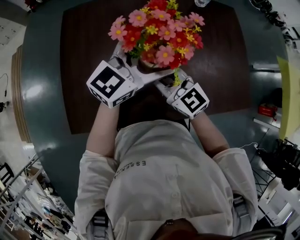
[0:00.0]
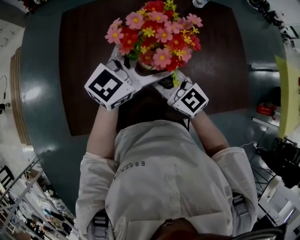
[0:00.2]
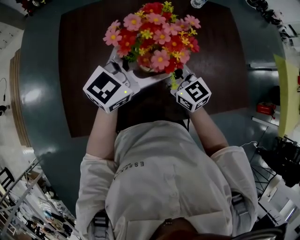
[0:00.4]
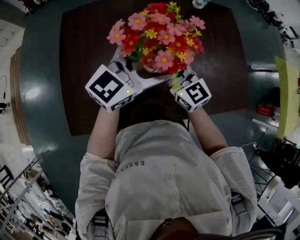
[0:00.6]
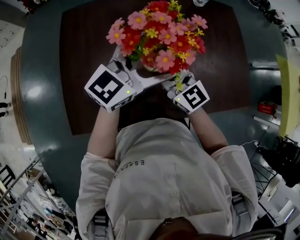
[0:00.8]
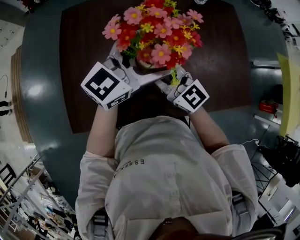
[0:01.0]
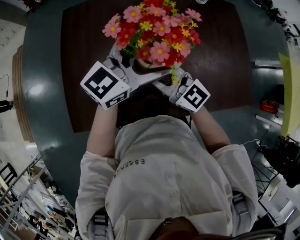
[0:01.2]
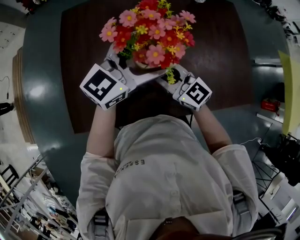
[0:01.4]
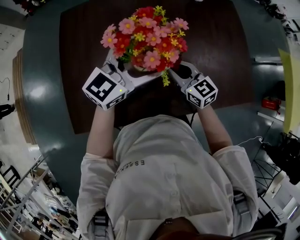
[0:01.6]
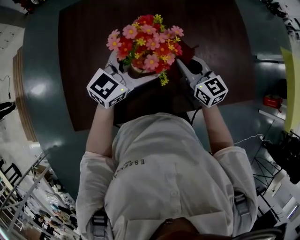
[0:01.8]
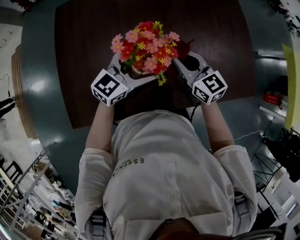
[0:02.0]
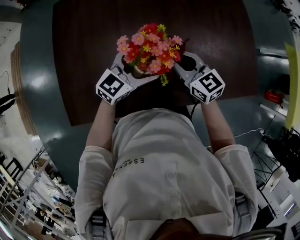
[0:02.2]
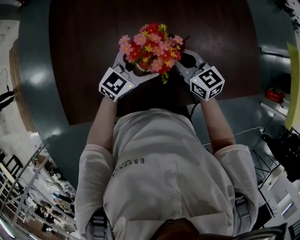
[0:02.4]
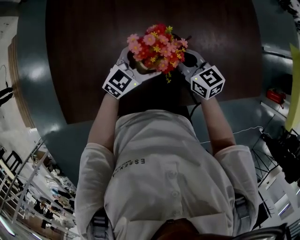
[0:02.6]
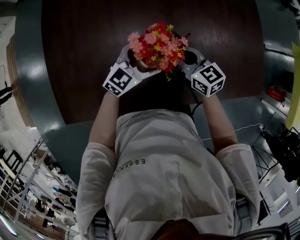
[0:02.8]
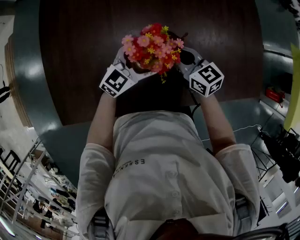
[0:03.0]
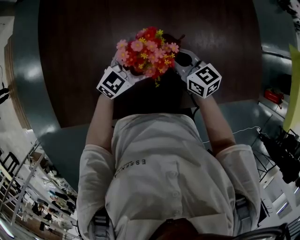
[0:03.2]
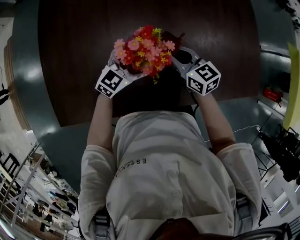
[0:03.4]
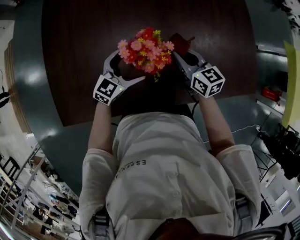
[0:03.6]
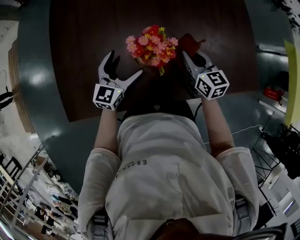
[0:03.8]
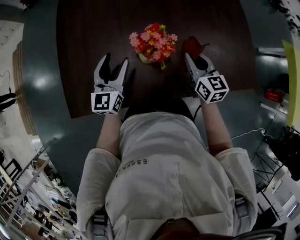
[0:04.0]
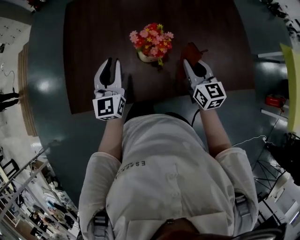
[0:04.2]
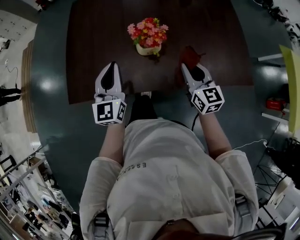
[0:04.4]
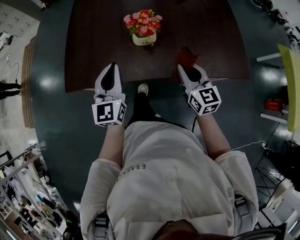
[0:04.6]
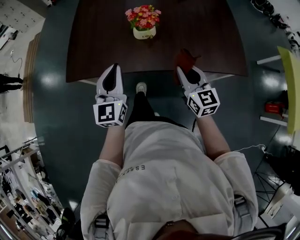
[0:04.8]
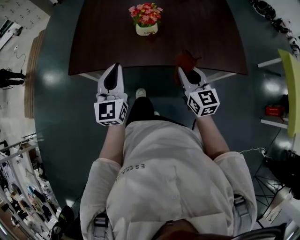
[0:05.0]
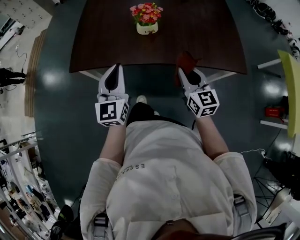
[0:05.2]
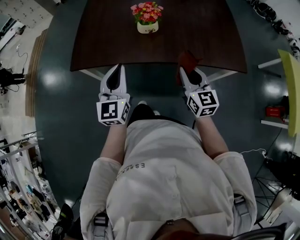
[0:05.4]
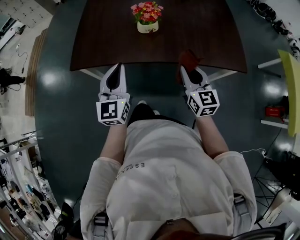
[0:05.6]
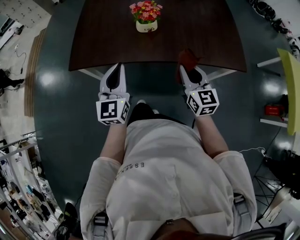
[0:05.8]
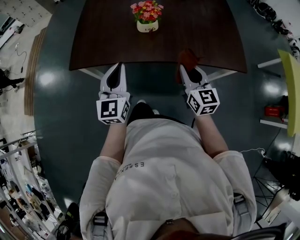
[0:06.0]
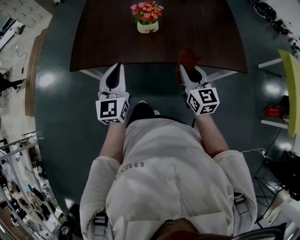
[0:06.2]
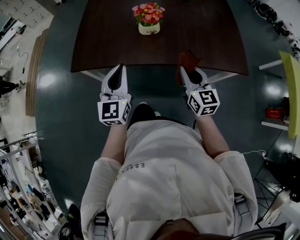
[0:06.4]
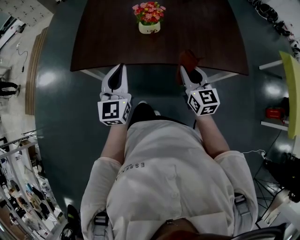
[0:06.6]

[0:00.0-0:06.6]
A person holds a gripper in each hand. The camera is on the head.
0.0 to 1.6 s: The right gripper goes left and right, roughly 10 cm each way, reversing 2 times.
1.6 to 3.2 s: The left gripper heads downward, covering approximately 25 cm. Meanwhile the right gripper moves downward, roughly 10 cm.
3.2 to 5.0 s: The two grippers go some 35 cm backward and upward. The left gripper rotates approximately 60 degrees, and closes up. Meanwhile the right gripper changes its angle by roughly 20 degrees.
5.0 to 6.6 s: There are only small adjustments of the grippers.

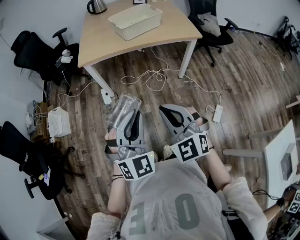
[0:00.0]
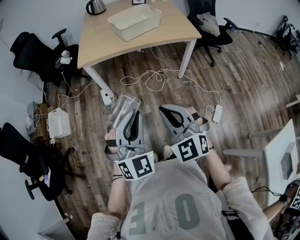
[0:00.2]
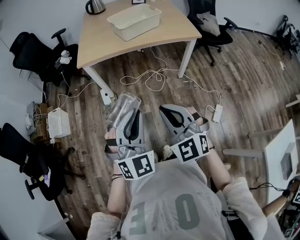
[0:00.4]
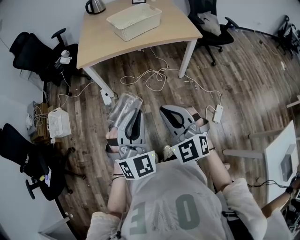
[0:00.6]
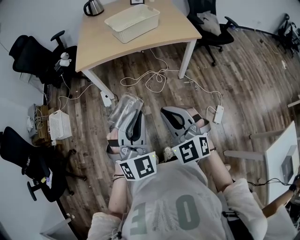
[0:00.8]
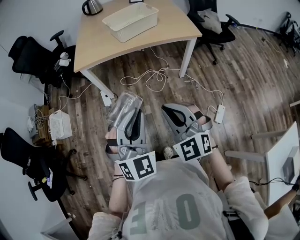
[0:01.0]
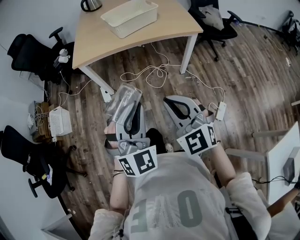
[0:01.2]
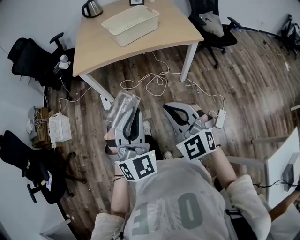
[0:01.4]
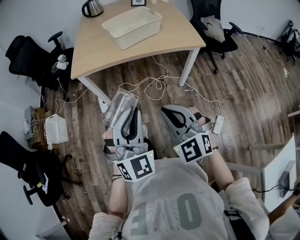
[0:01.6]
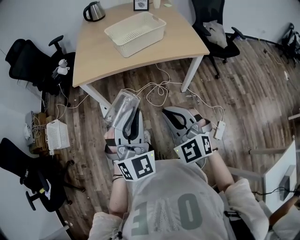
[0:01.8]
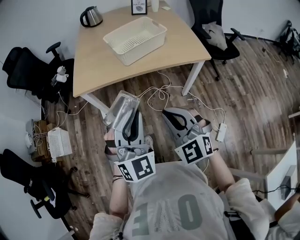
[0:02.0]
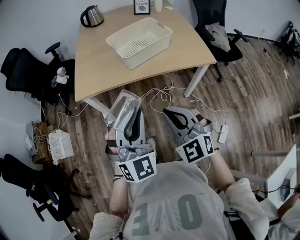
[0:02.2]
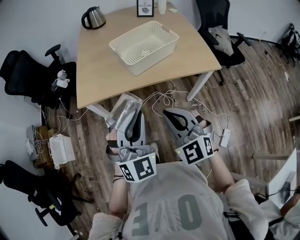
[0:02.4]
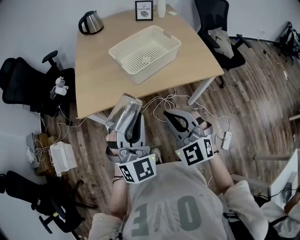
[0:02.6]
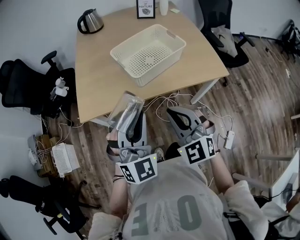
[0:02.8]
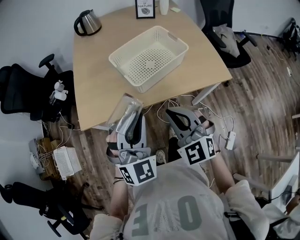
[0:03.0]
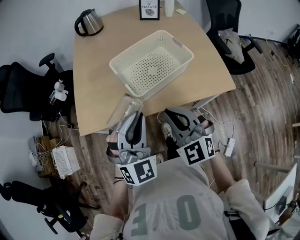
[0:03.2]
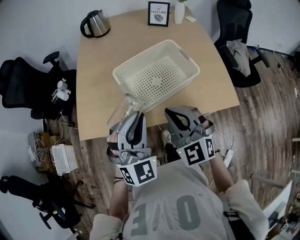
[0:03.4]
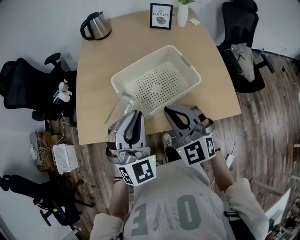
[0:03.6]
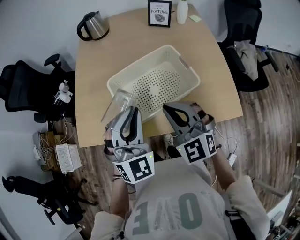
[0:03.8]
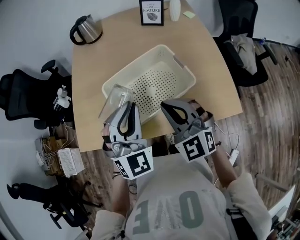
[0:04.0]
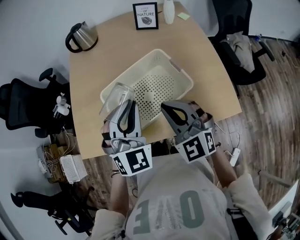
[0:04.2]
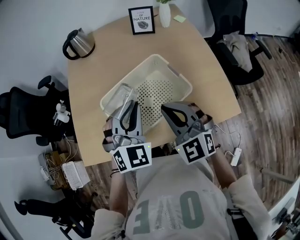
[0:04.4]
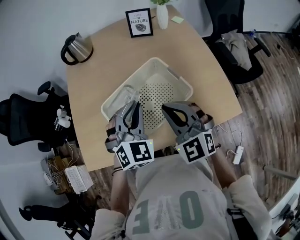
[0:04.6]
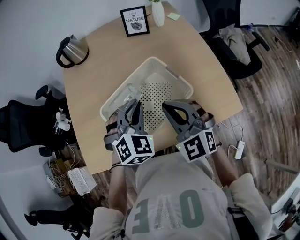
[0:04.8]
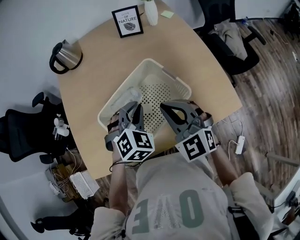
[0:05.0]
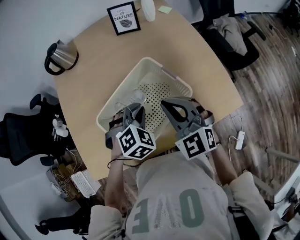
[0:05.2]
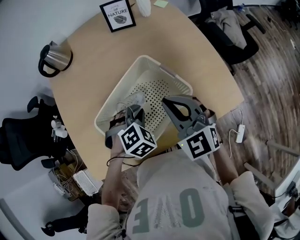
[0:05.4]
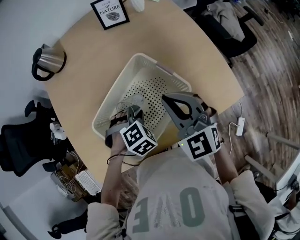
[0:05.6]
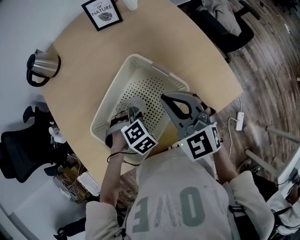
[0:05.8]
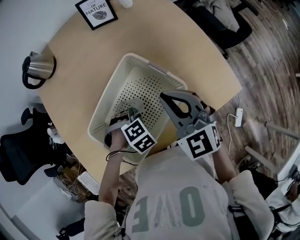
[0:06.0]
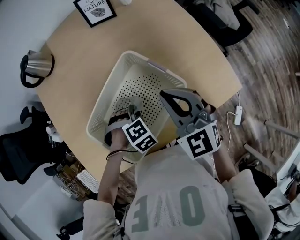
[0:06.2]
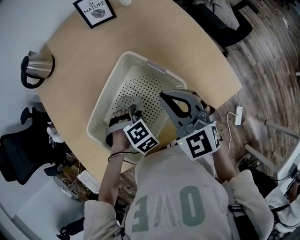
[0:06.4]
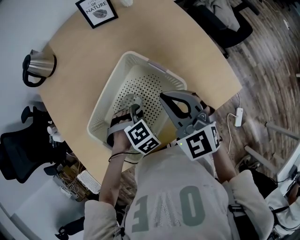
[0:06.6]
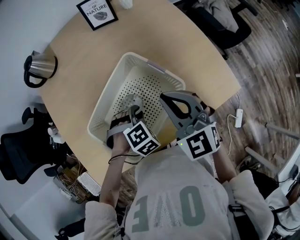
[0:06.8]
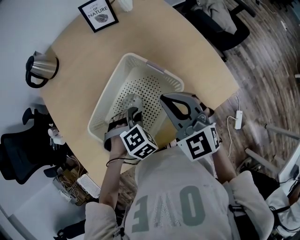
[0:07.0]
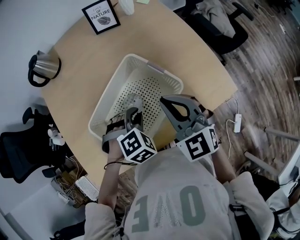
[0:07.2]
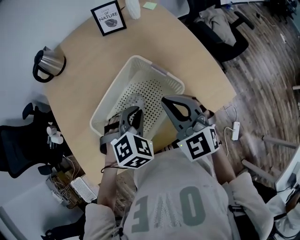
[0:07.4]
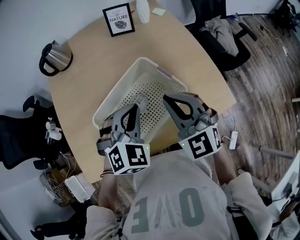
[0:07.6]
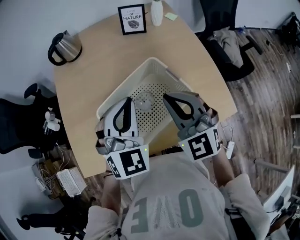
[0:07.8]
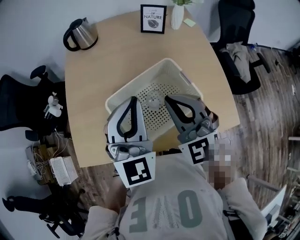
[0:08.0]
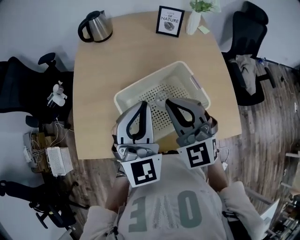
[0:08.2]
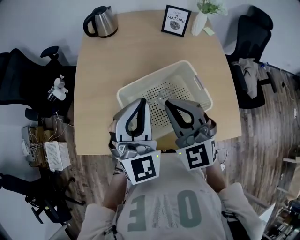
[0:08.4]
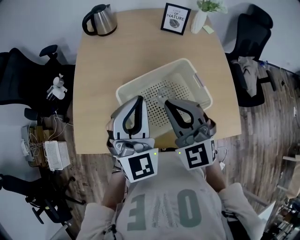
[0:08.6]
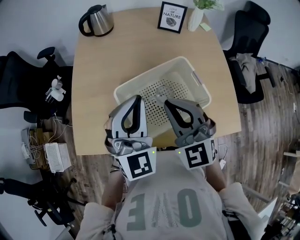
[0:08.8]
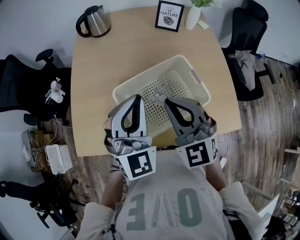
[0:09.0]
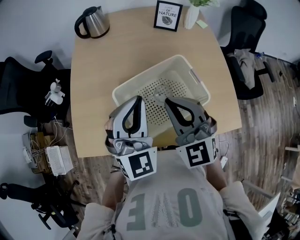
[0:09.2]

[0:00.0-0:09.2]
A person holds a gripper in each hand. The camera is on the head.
0.0 to 1.6 s: Both grippers move forward and to the right, about 15 cm.
1.6 to 3.0 s: Both grippers move forward, about 35 cm.
3.0 to 4.6 s: The two grippers go approximately 30 cm forward and to the right.
4.6 to 6.2 s: The left gripper travels downward by approximately 20 cm, and tips its fingers downward by some 50 degrees. The right gripper moves some 10 cm, and rotates approximately 20 degrees.
6.2 to 7.6 s: The right gripper goes roughly 5 cm upward. The left gripper moves upward, about 20 cm, and angles its fingers upward, by approximately 40 degrees.
7.6 to 9.2 s: The right gripper goes approximately 10 cm to the left, while the left gripper shifts roughly 15 cm to the left and upward, and angles its fingers upward, by roughly 30 degrees.

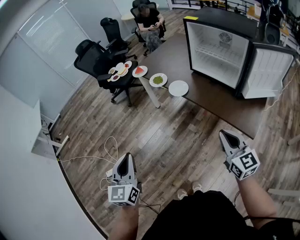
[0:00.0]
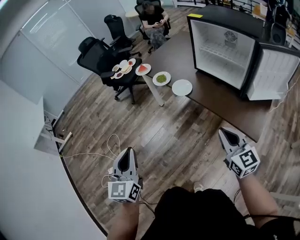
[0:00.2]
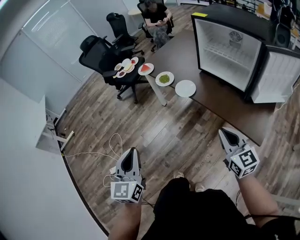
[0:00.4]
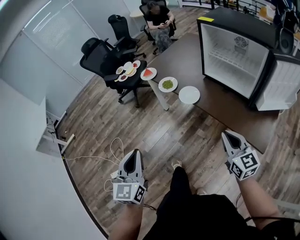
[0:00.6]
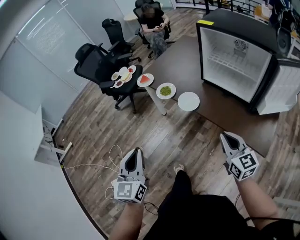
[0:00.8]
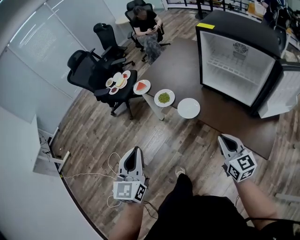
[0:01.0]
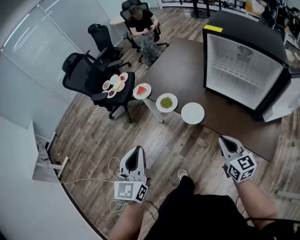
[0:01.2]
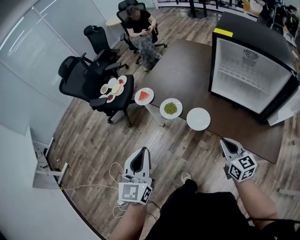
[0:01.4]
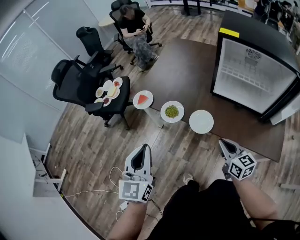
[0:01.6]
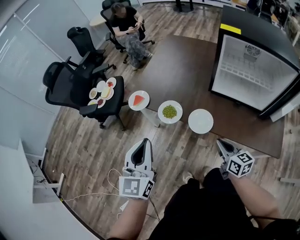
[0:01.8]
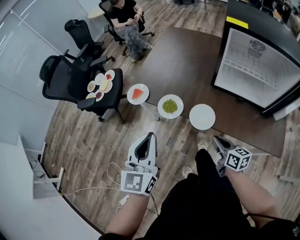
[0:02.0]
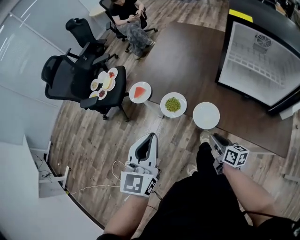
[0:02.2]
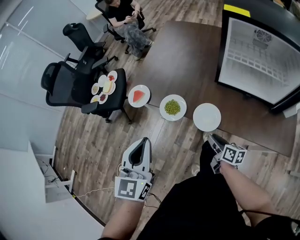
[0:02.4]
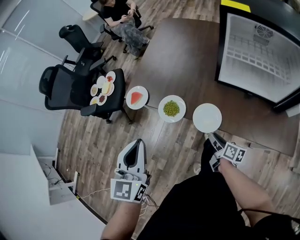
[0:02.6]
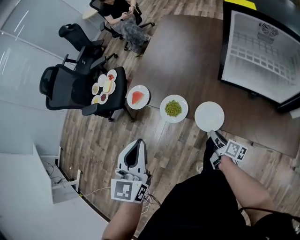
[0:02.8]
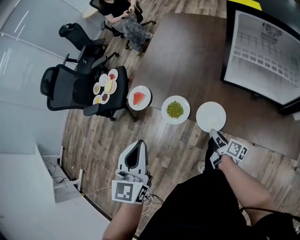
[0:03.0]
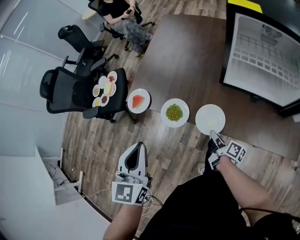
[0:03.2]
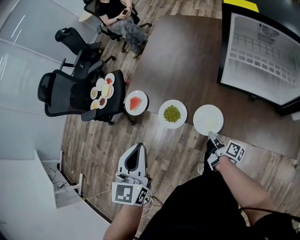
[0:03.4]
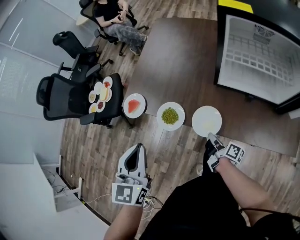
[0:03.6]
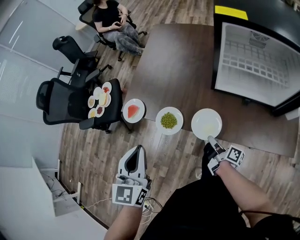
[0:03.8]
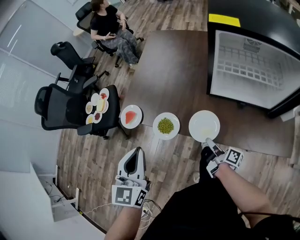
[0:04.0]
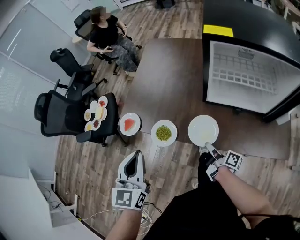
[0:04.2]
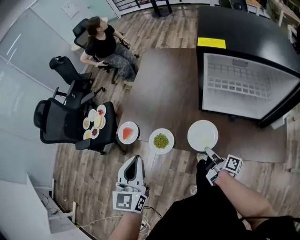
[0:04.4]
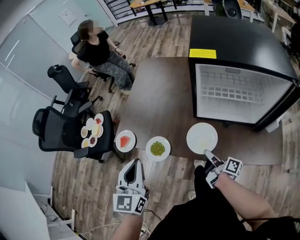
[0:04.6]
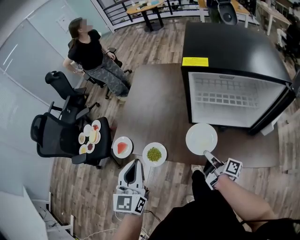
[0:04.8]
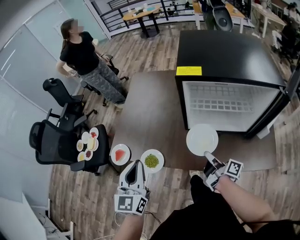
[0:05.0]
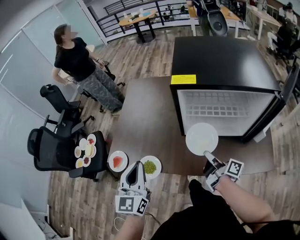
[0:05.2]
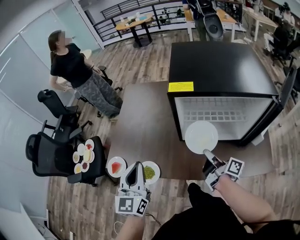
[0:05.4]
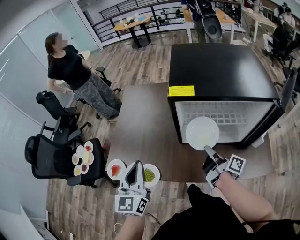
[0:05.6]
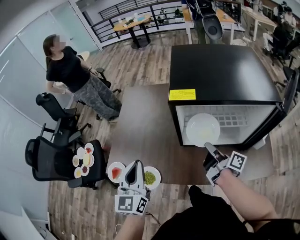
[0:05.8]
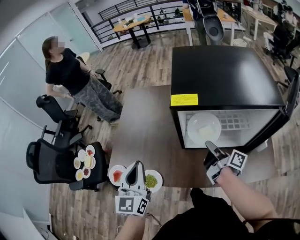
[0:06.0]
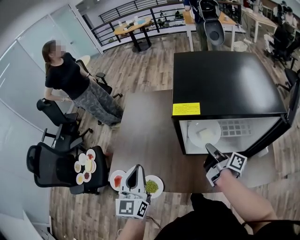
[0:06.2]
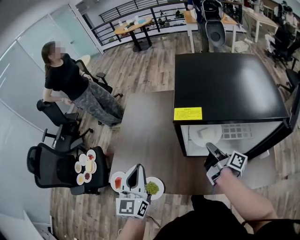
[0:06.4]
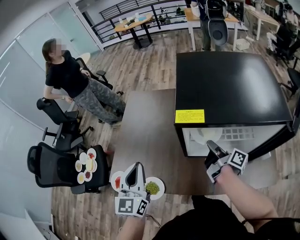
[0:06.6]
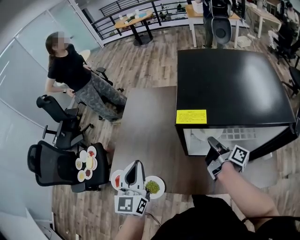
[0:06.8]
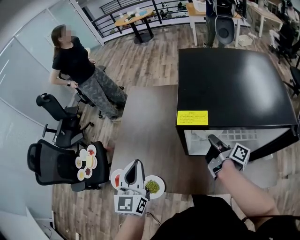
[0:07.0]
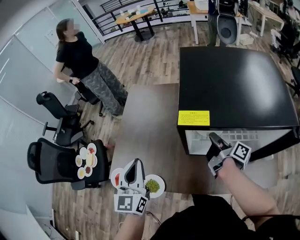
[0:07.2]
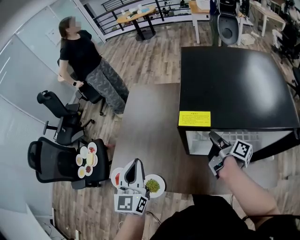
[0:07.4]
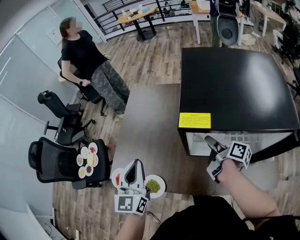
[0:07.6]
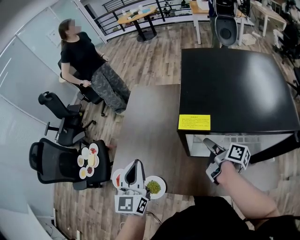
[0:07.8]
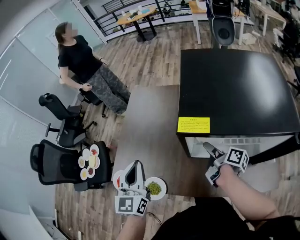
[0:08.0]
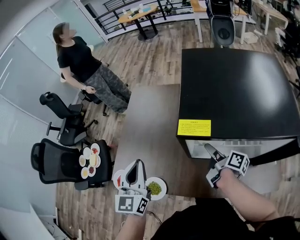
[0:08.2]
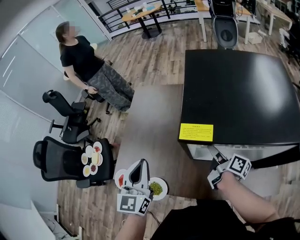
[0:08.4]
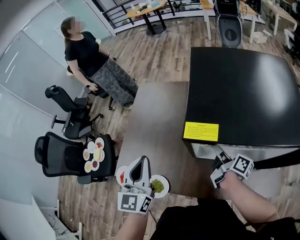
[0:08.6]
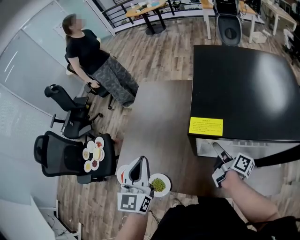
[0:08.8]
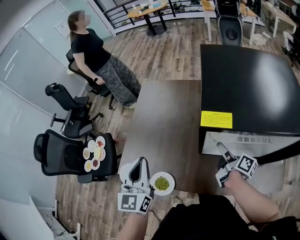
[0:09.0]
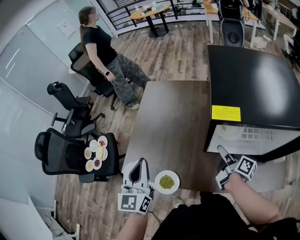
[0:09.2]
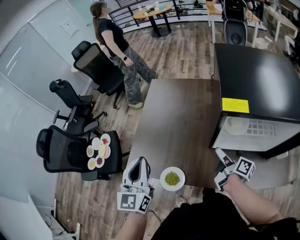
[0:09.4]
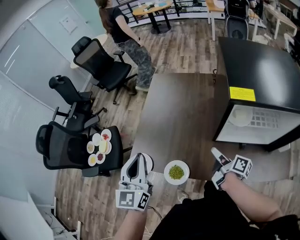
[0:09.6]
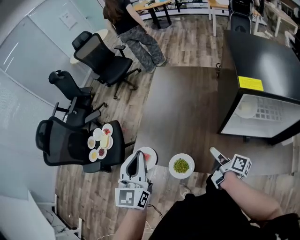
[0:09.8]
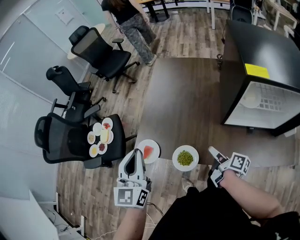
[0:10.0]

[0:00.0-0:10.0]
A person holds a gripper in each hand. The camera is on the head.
0.0 to 1.4 s: The left gripper moves roughly 35 cm.
1.4 to 2.8 s: The left gripper moves roughly 20 cm.
2.8 to 4.2 s: The left gripper ends up roughly 5 cm from where it was.
4.2 to 5.8 s: The left gripper ends up roughly 20 cm from where it was.
5.8 to 7.2 s: The left gripper ends up approximately 10 cm from where it was.
8.6 to 10.0 s: The left gripper moves some 25 cm.
